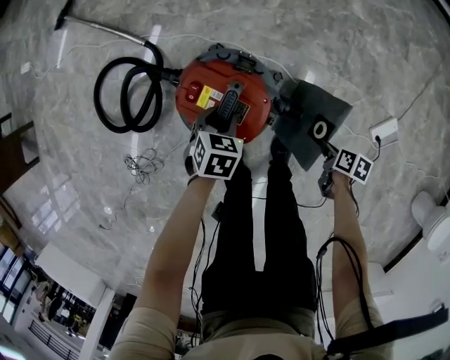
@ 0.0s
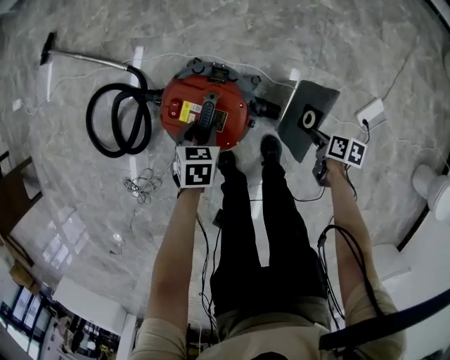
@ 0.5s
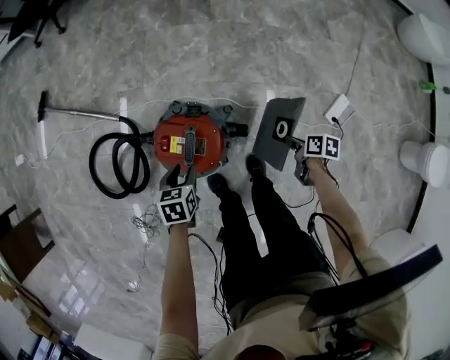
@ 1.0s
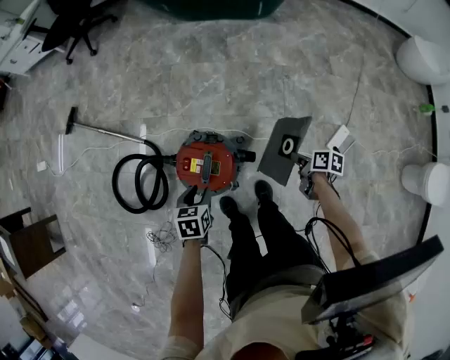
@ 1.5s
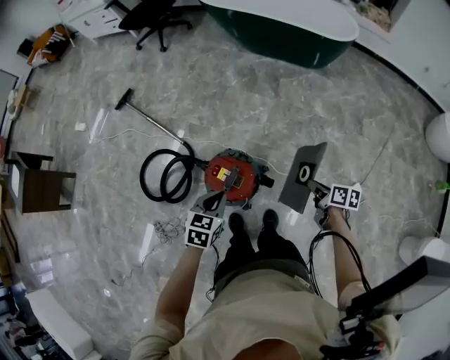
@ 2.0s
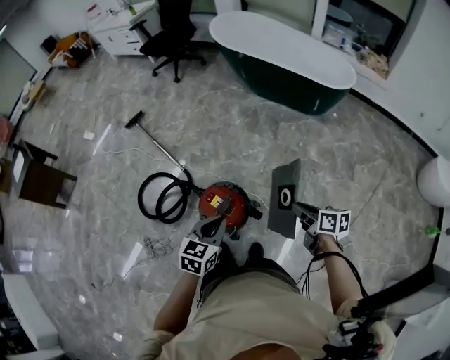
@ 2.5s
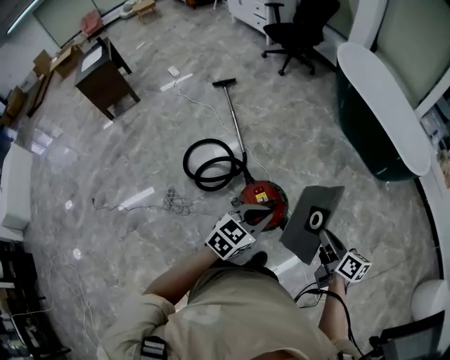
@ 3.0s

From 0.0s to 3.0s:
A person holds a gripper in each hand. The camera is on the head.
From 0.0s to 1.5s: The two grippers go roughly 20 cm upward.
From 1.5s to 3.0s: The two grippers go some 30 cm upward. The right gripper turns by some 50 degrees. Meanwhile the left gripper angles its fingers upward, by some 30 degrees, and closes its fingers.

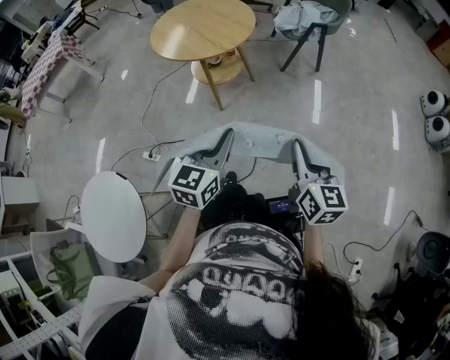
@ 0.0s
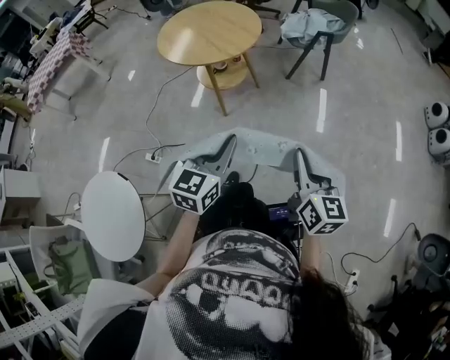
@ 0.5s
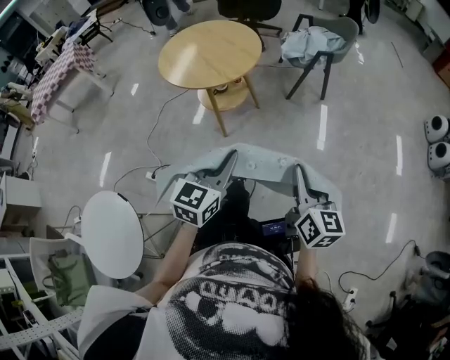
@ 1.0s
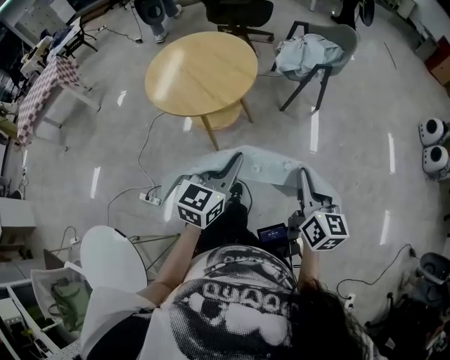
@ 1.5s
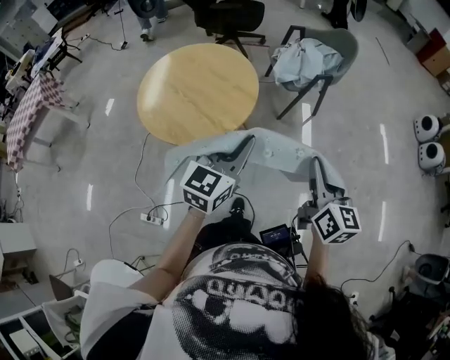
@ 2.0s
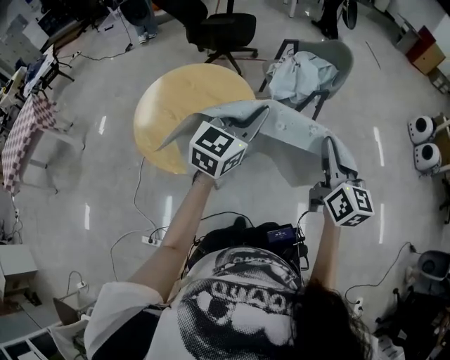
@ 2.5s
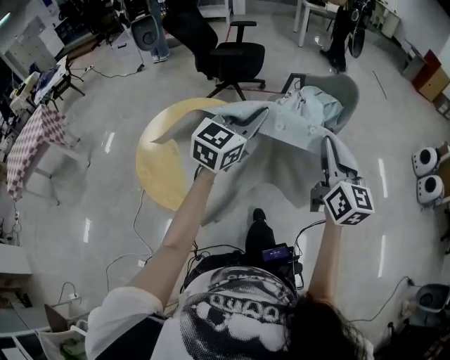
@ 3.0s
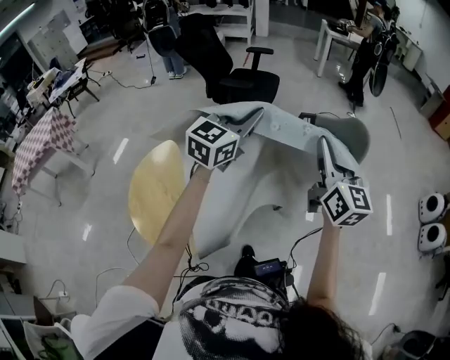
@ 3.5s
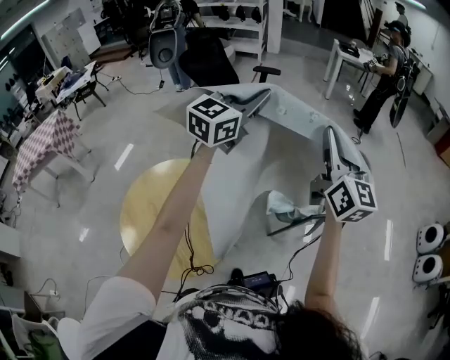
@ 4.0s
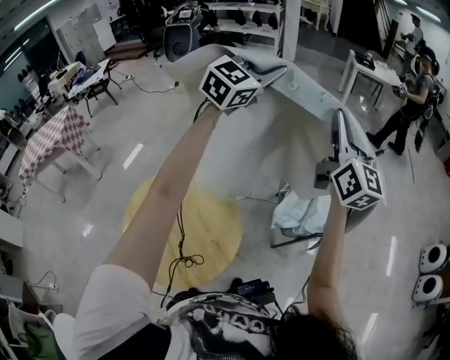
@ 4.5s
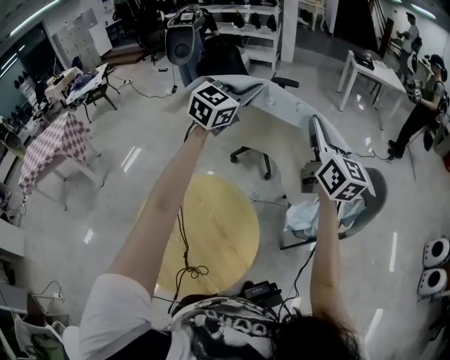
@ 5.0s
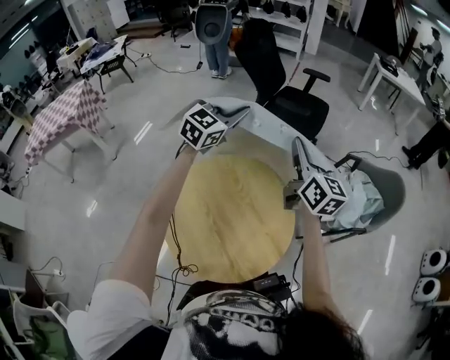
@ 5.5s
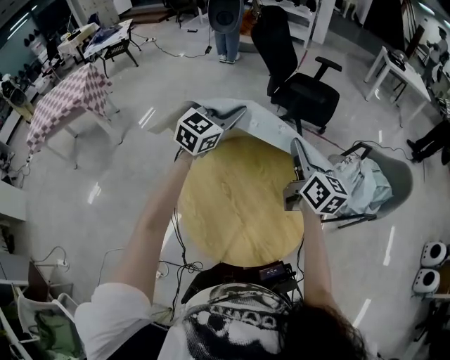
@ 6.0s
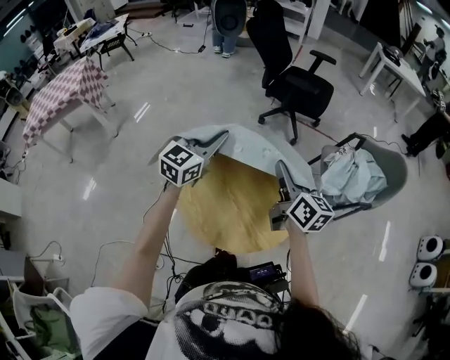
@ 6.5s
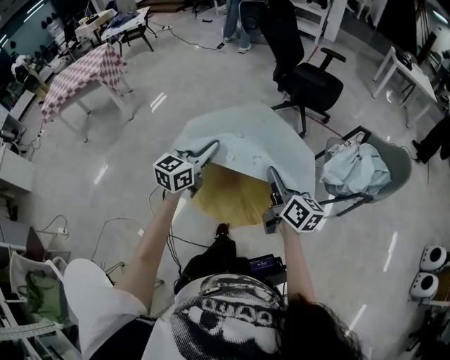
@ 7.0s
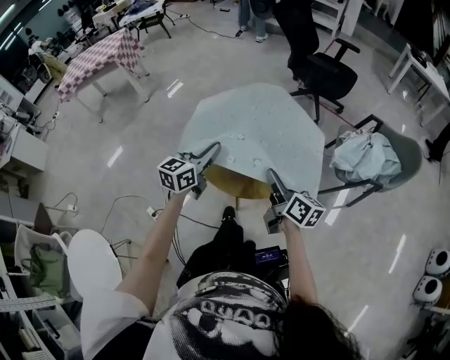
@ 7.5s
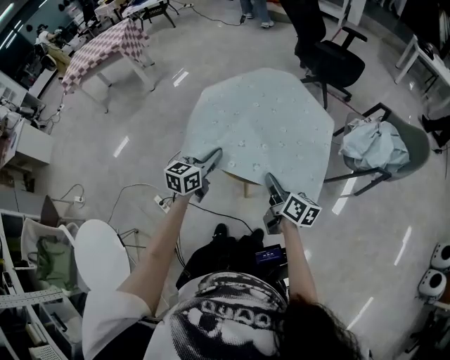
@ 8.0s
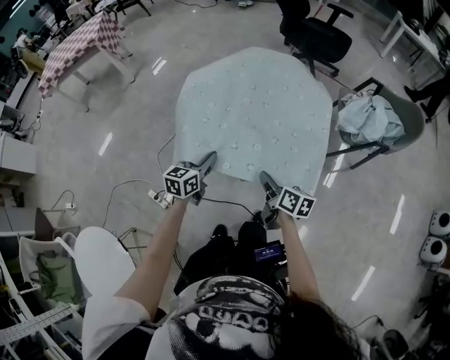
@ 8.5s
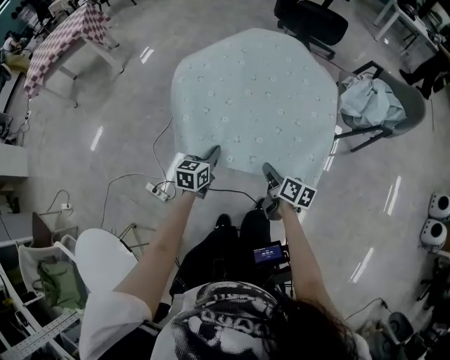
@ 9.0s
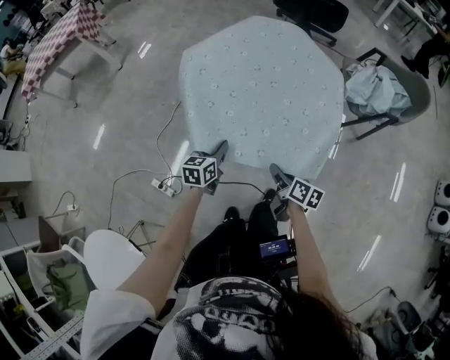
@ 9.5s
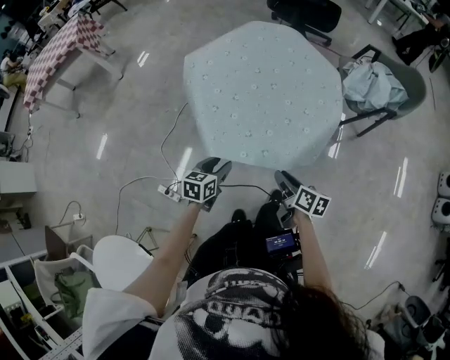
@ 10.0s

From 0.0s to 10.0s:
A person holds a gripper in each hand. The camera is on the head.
From 0.0s to 2.0s: Both grippers travel together forward, about 35 cm.
From 2.0s to 4.0s: The two grippers travel together, forward, roughly 60 cm. The right gripper swivels about 30 degrees.
From 4.0s to 6.0s: The pair of grippers is taken to the left, roughly 40 cm. The right gripper rotates about 30 degrees.
From 6.0s to 8.0s: The two grippers go approximately 40 cm backward and downward. The left gripper turns by roughly 40 degrees, while the right gripper rotates some 40 degrees.
From 8.0s to 10.0s: Both grippers travel together downward, backward and to the left, some 20 cm. The left gripper swivels roughly 20 degrees, and opens up.

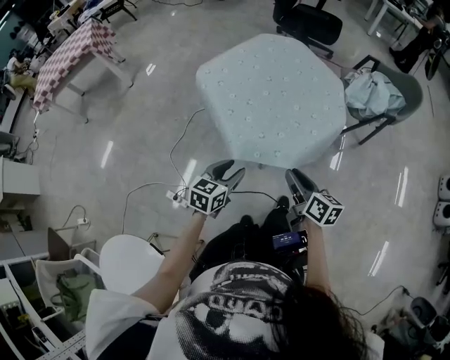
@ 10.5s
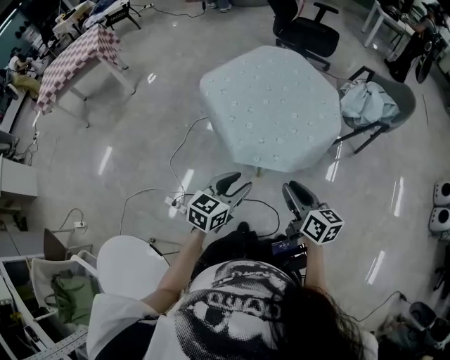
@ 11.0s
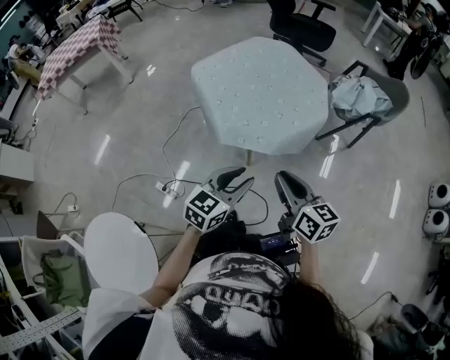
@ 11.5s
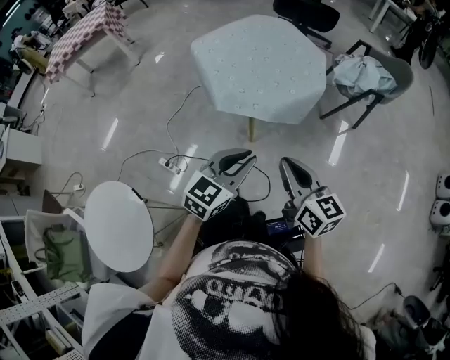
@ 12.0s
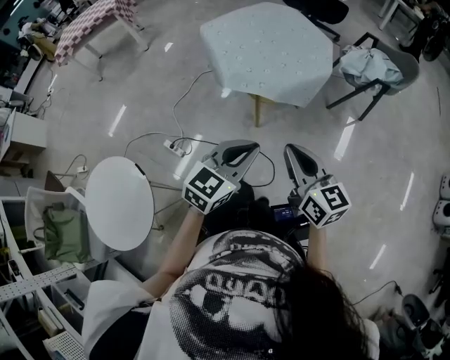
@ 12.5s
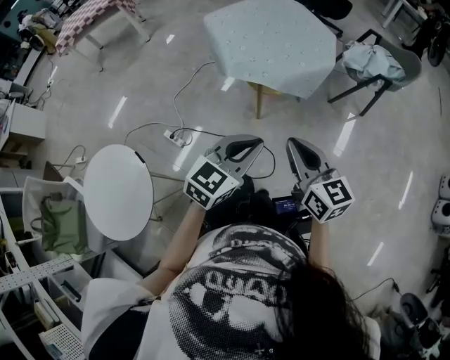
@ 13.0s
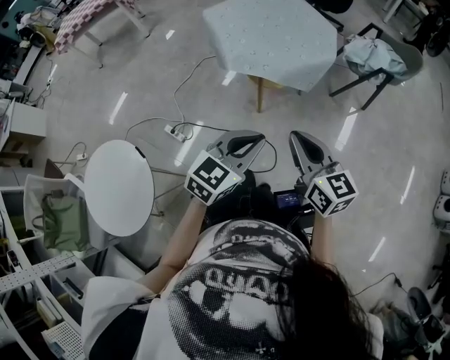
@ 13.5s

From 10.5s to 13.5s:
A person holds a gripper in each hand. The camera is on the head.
From 10.5s to 12.0s: The left gripper shifts about 30 cm backward, to the right and upward, and closes its fingers. Meanwhile the right gripper goes some 20 cm backward and upward, rotates about 30 degrees, and closes up.
From 12.0s to 13.5s: Both grippers travel together backward, approximately 10 cm.

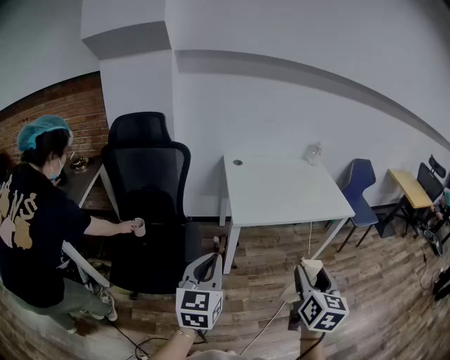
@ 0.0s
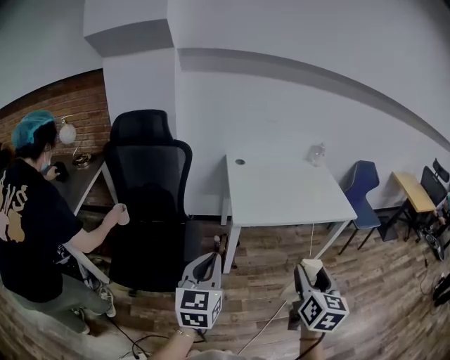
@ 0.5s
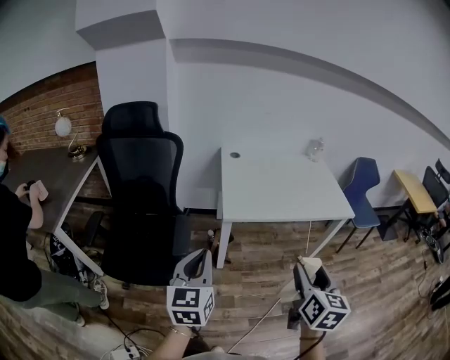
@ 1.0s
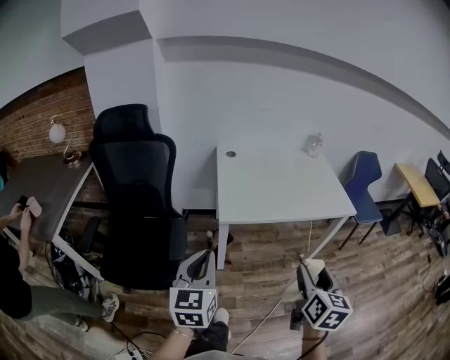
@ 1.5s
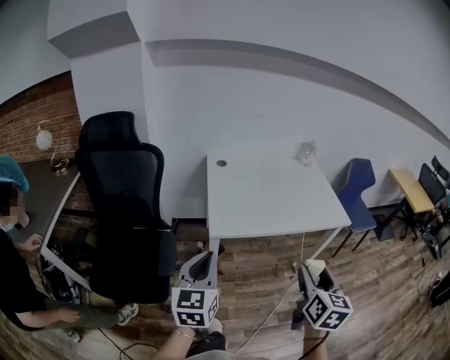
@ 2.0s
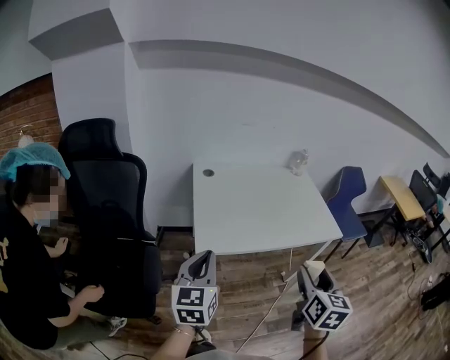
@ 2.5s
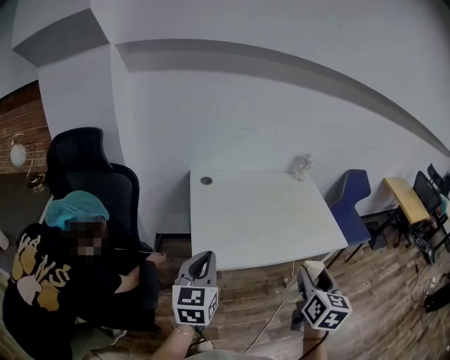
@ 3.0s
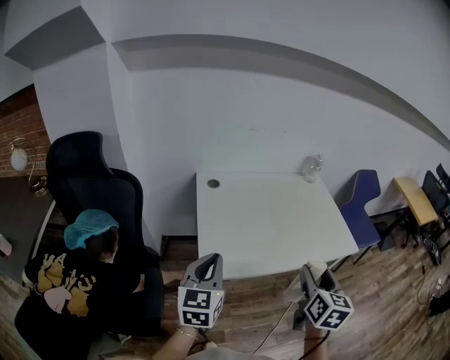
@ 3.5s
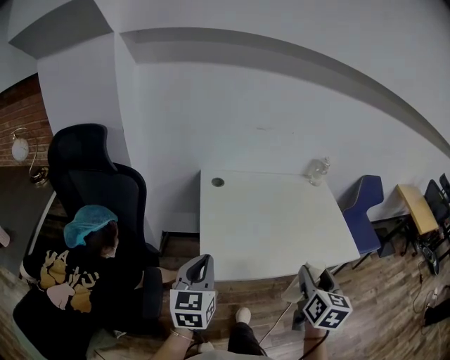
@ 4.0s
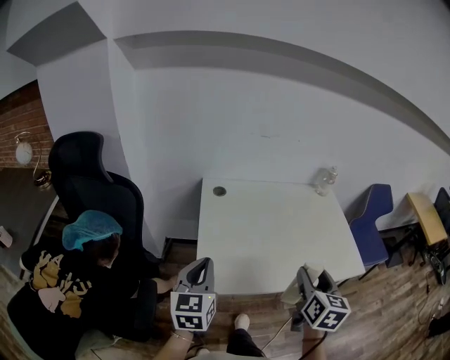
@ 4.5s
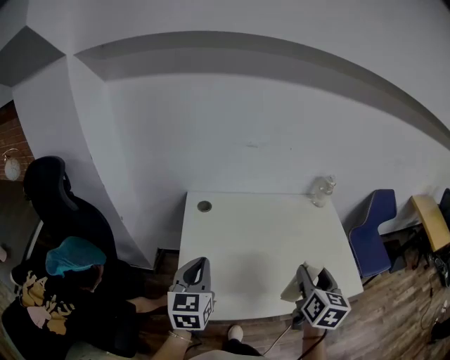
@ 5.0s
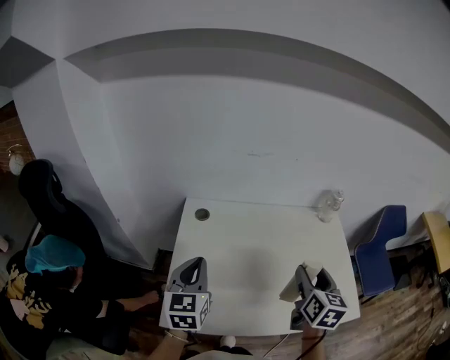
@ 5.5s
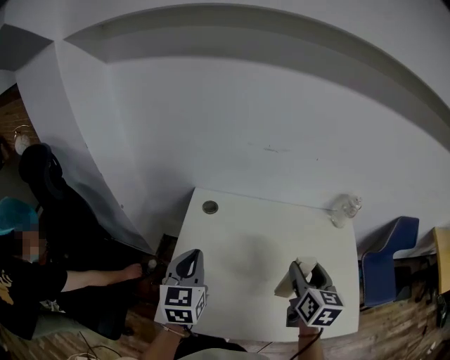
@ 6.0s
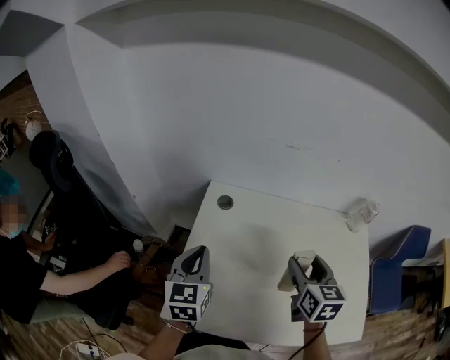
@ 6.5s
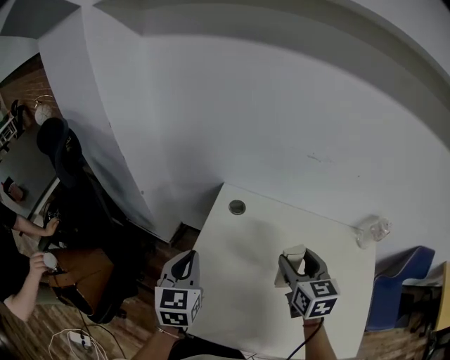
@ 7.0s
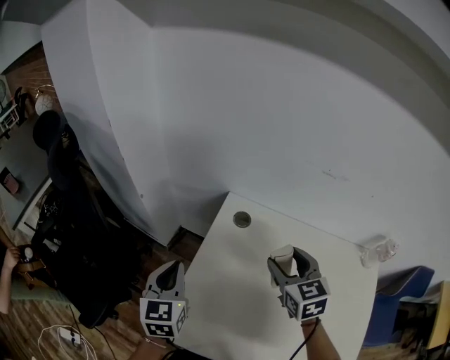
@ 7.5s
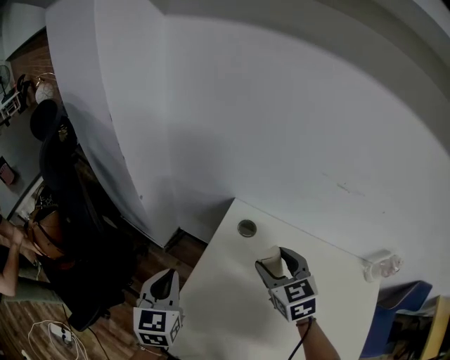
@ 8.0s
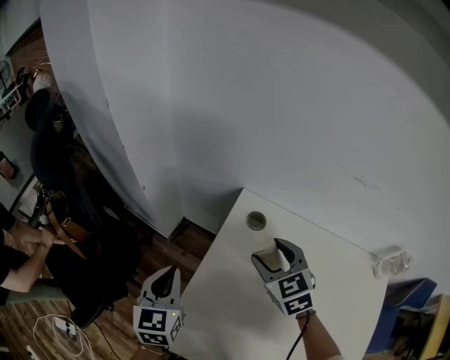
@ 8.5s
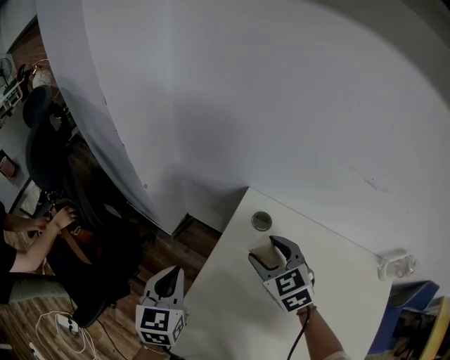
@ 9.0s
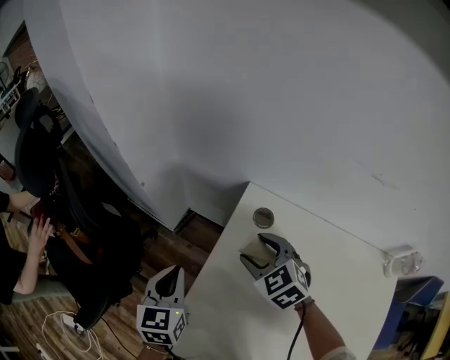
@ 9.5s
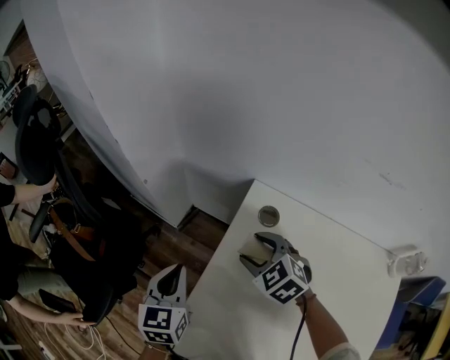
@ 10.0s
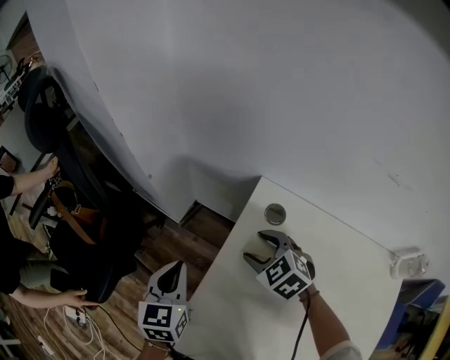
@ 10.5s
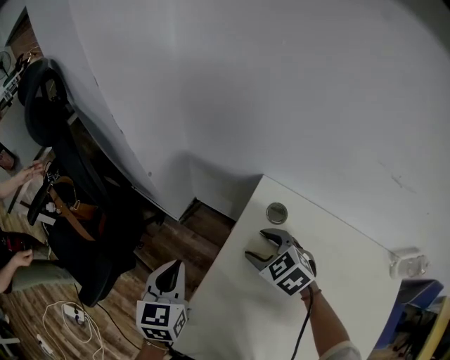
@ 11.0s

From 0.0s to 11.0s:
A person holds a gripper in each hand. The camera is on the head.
From 0.0s to 2.0s: The two grippers go about 15 cm forward and to the right.
From 2.0s to 3.5s: The grippers both shift forward by approximately 20 cm.
From 3.5s to 5.5s: Both grippers travel together forward, approximately 25 cm.
From 5.5s to 7.5s: The right gripper shifts by roughly 30 cm, and changes its angle by about 50 degrees; the left gripper shifts by about 15 cm, and turns by approximately 20 degrees.
From 7.5s to 9.0s: The right gripper heads to the left, downward and forward, covering roughly 15 cm, and swivels approximately 20 degrees, while the left gripper heads downward, covering approximately 5 cm.
From 9.0s to 11.0s: The right gripper heads downward, covering approximately 10 cm, and swivels some 20 degrees.
